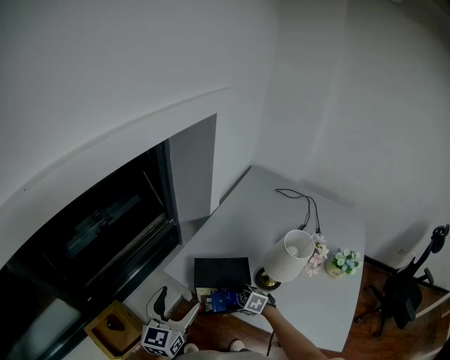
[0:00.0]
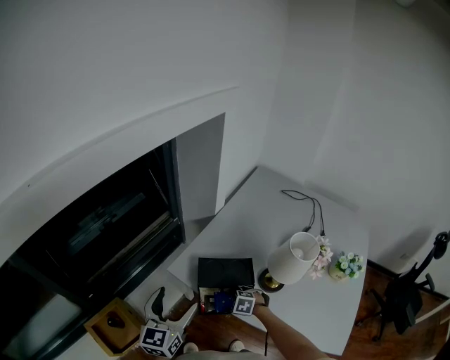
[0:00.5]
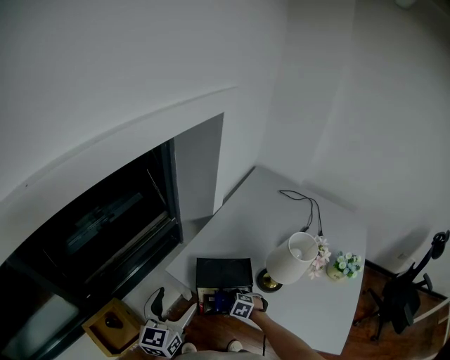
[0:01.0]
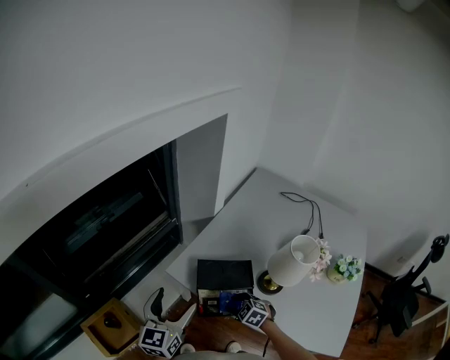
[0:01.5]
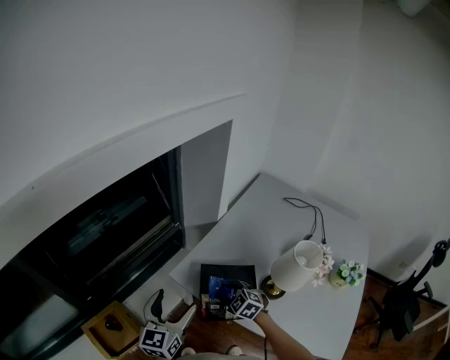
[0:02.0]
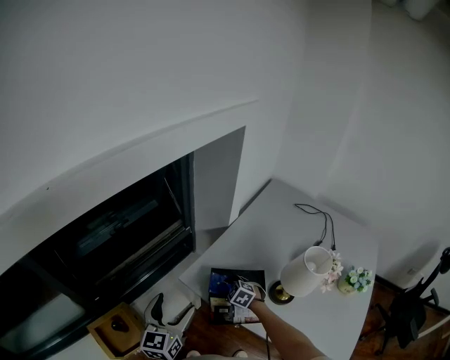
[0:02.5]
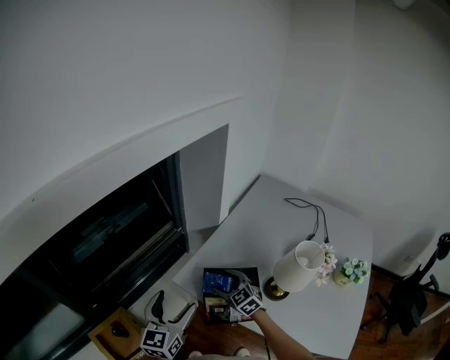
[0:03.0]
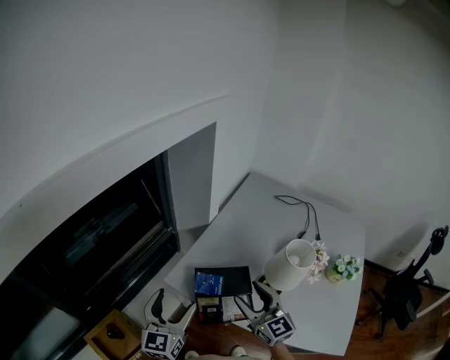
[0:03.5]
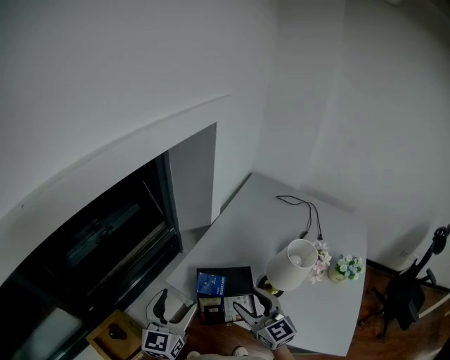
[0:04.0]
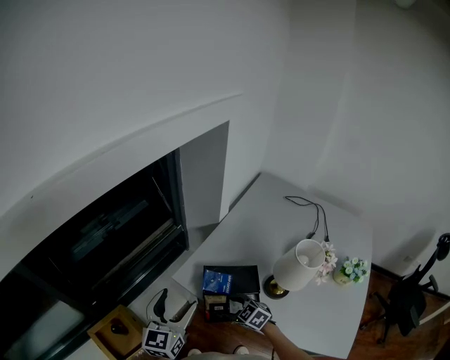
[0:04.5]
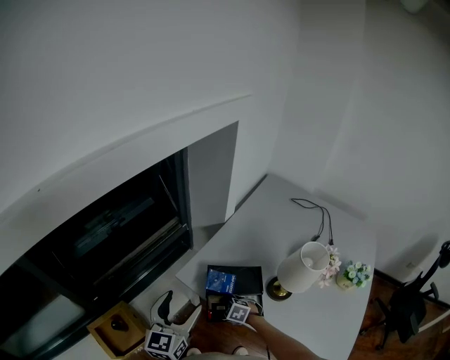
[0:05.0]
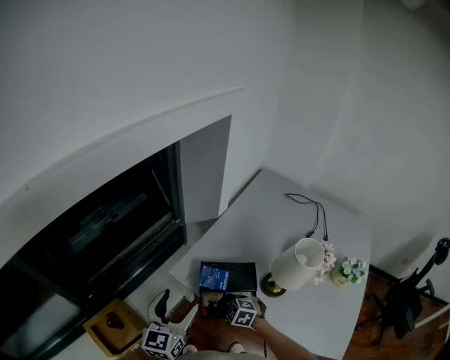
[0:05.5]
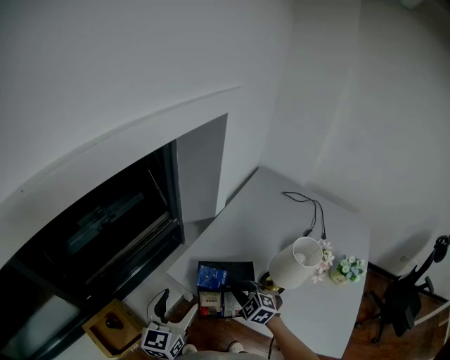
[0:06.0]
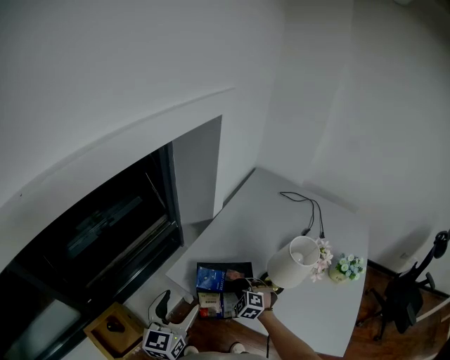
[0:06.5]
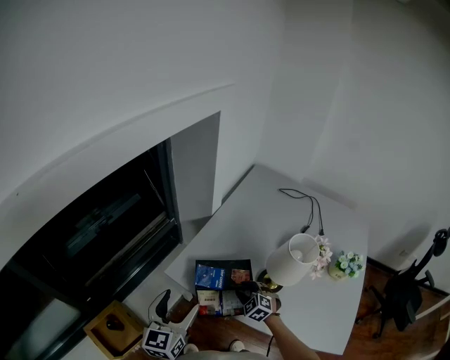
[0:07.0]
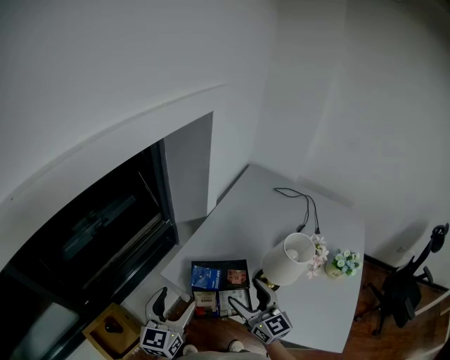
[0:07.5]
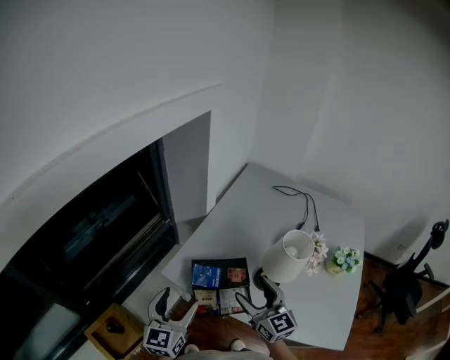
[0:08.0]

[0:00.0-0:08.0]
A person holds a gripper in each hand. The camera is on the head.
0:00.0 to 0:02.0: The right gripper moves upward and forward, about 10 cm.
0:02.0 to 0:04.0: The right gripper moves upward and backward, about 20 cm, and tilts its fingers approximately 40 degrees upward.
0:04.0 to 0:06.0: The right gripper heads downward and forward, covering roughly 15 cm, angles its fingers downward, by roughly 40 degrees, and closes up.
0:06.0 to 0:08.0: The right gripper travels upward and to the right by approximately 15 cm, angles its fingers upward, by roughly 40 degrees, and opens.

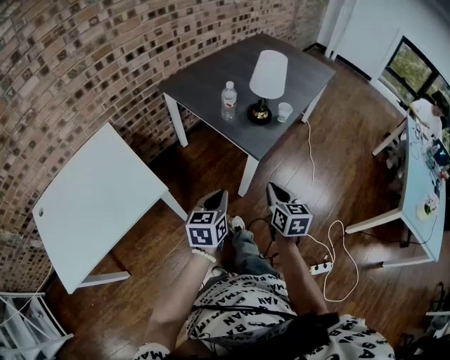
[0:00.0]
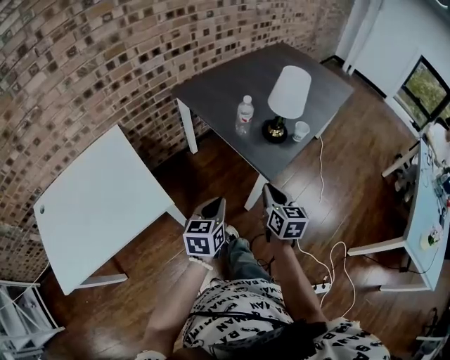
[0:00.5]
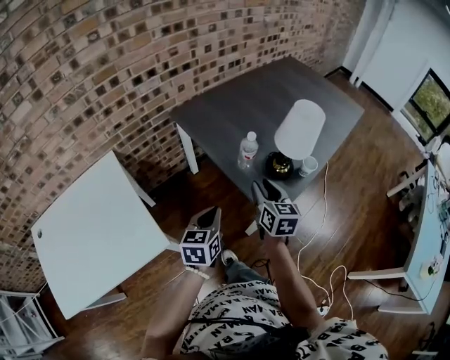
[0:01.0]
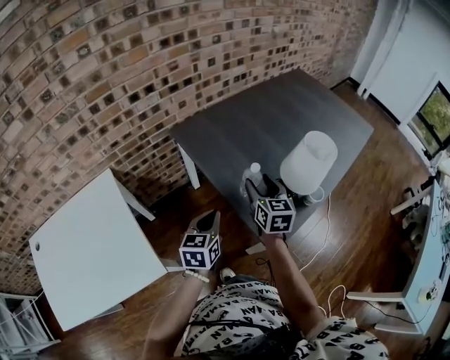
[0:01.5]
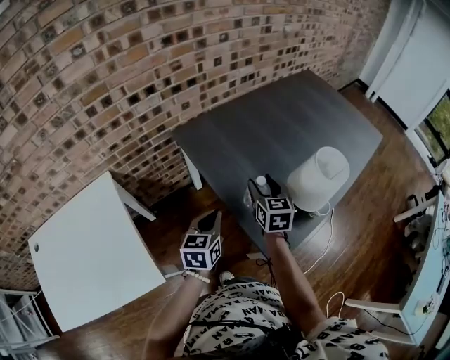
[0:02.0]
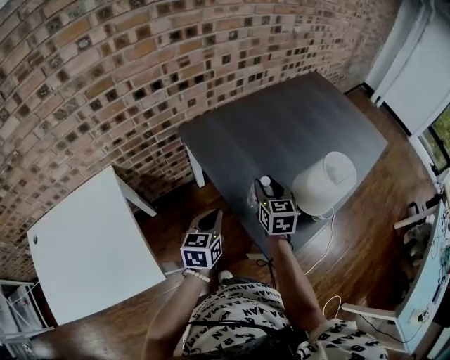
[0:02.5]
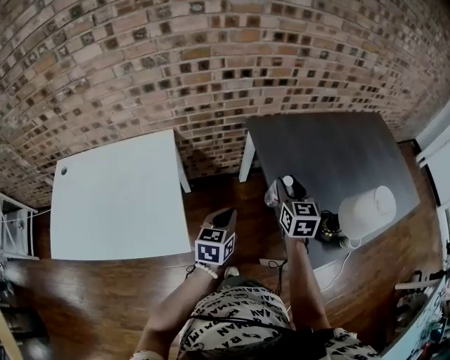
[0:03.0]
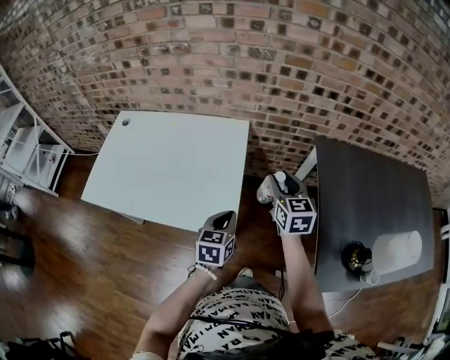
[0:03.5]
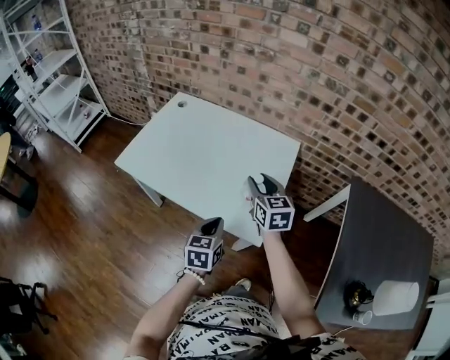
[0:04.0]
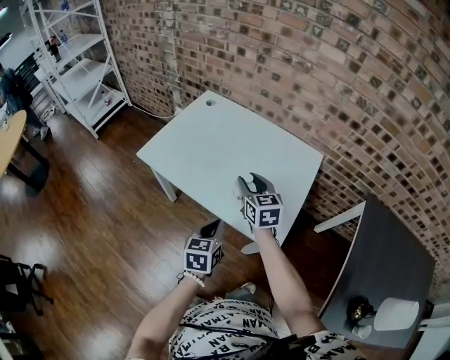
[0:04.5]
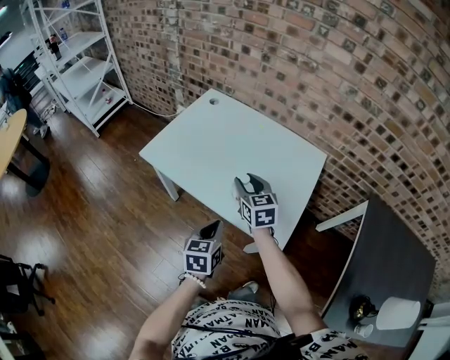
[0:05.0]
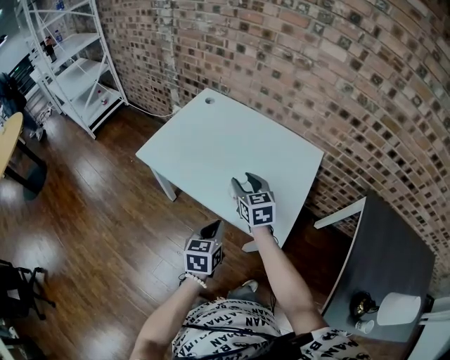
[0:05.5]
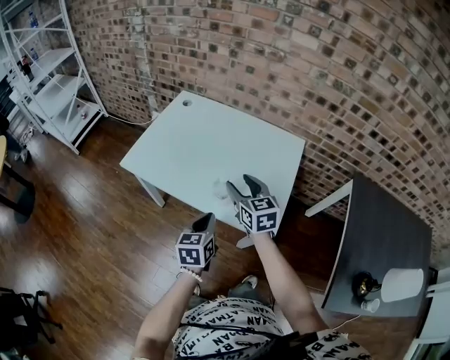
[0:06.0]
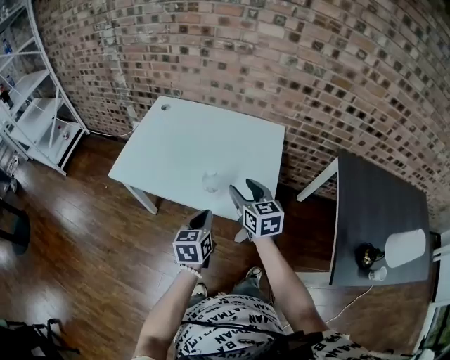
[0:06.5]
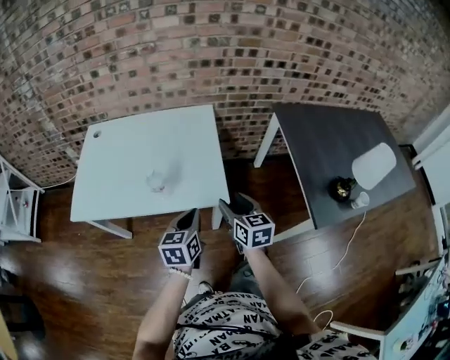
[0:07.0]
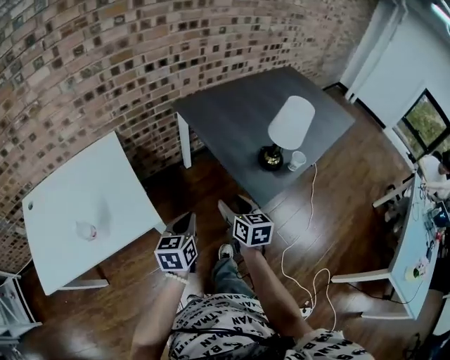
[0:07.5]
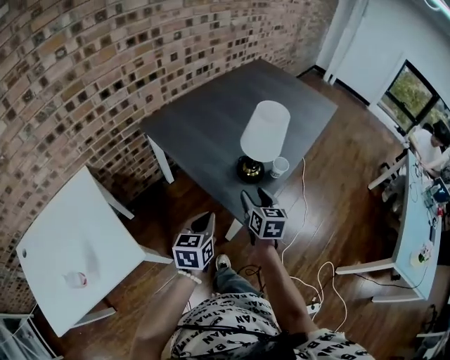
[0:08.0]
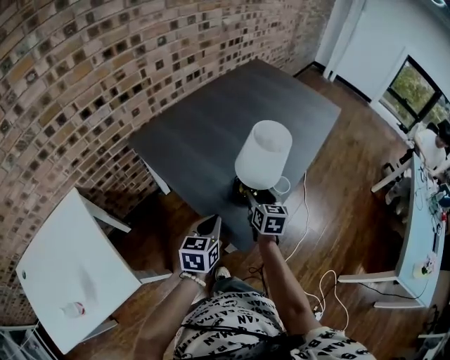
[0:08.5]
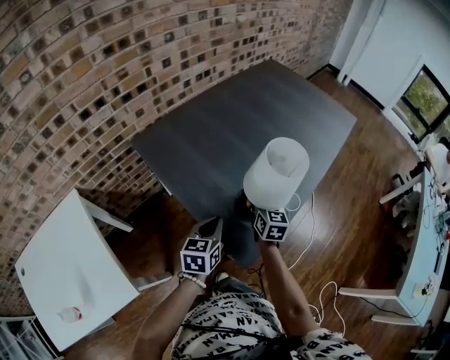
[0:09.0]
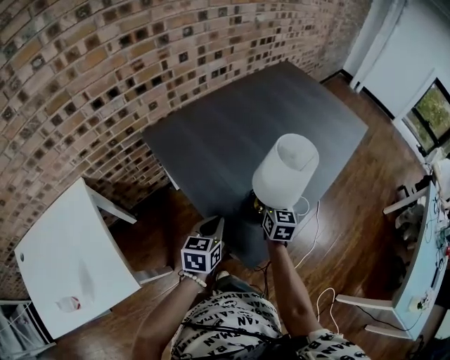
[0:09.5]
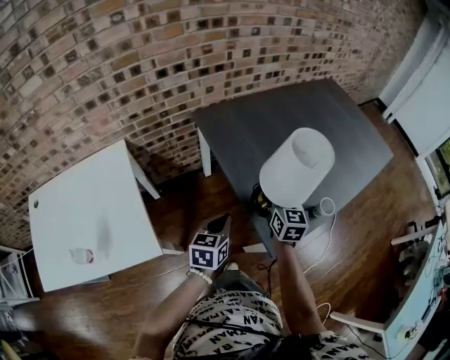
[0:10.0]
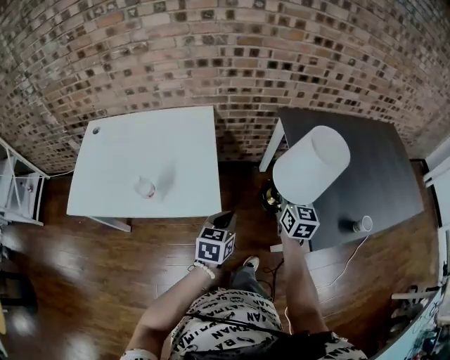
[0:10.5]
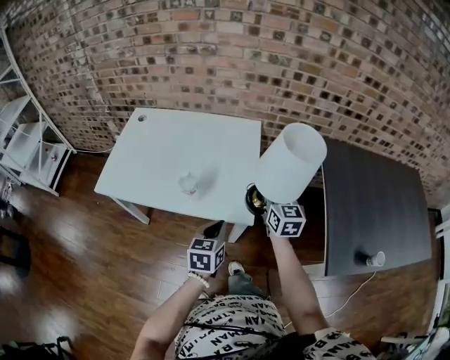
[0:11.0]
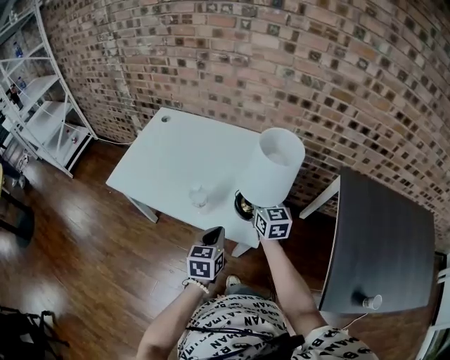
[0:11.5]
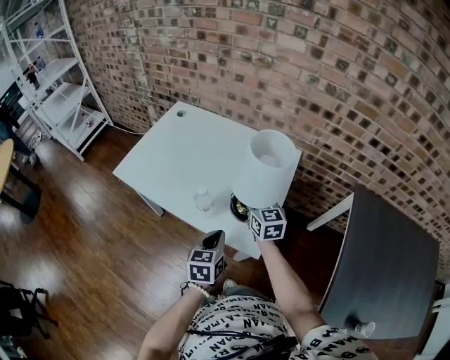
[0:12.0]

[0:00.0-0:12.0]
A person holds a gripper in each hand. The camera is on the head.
0:00.0 to 0:02.0: Both grippers move forward, roughly 40 cm. The right gripper opens.
0:02.0 to 0:04.0: Both grippers are carried approximately 60 cm. The right gripper swivels about 70 degrees, while the left gripper swivels approximately 60 degrees.
0:04.0 to 0:06.0: Both grippers move to the left, roughly 10 cm.
0:06.0 to 0:08.0: Both grippers are carried roughly 60 cm. The left gripper rotates roughly 70 degrees, while the right gripper turns by approximately 90 degrees.
0:08.0 to 0:10.0: The left gripper moves to the left and forward, roughly 10 cm. Meanwhile the right gripper is displaced forward and to the left by some 15 cm, and closes its fingers.
0:10.0 to 0:12.0: Both grippers are carried about 50 cm. The left gripper changes its angle by approximately 60 degrees. The right gripper swivels some 70 degrees.

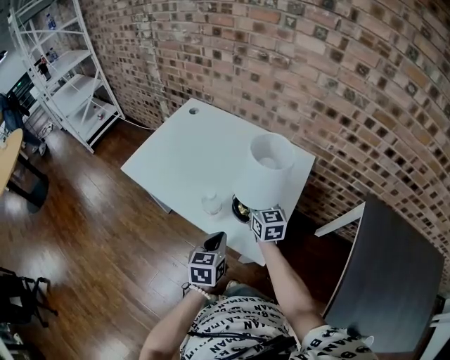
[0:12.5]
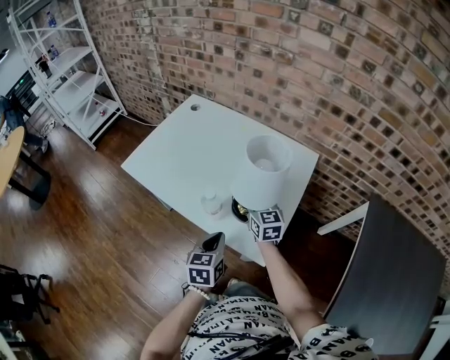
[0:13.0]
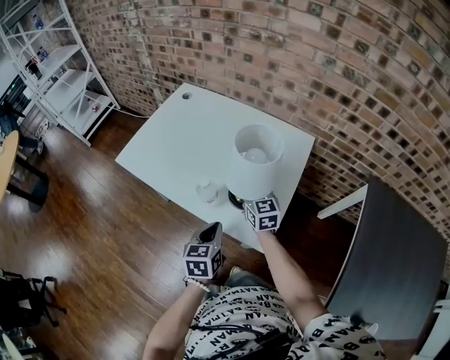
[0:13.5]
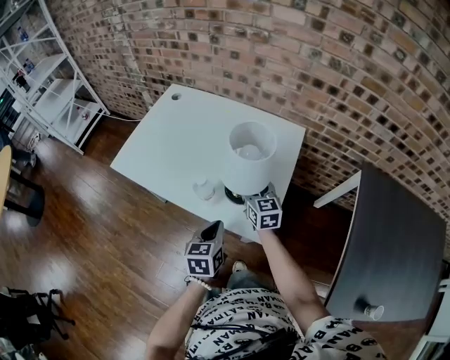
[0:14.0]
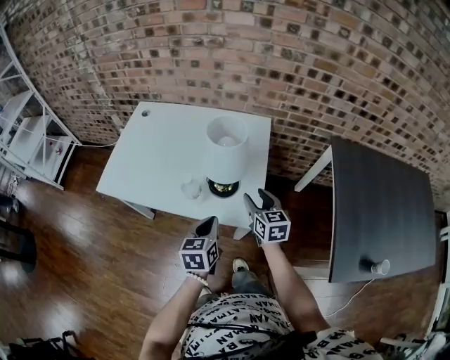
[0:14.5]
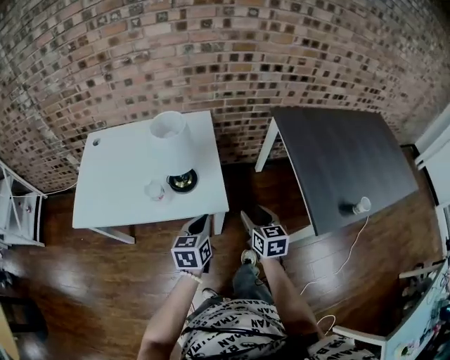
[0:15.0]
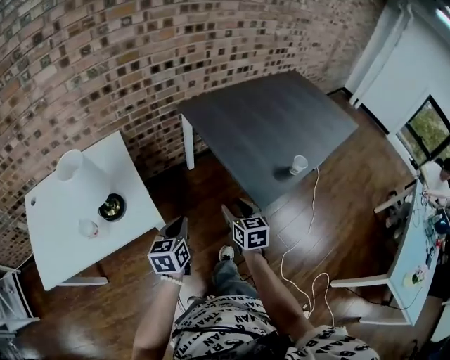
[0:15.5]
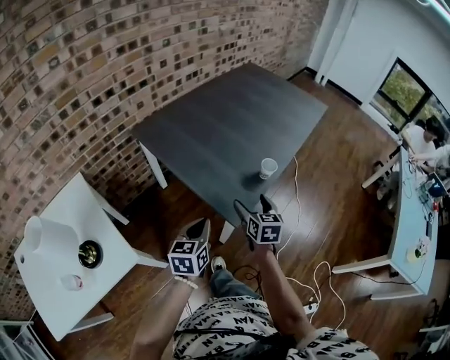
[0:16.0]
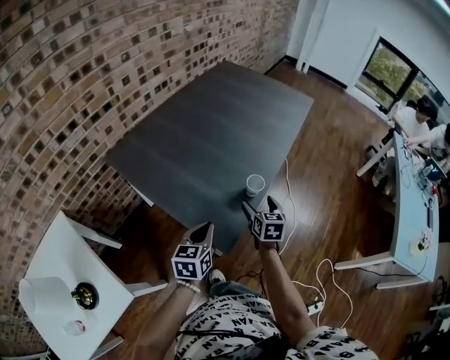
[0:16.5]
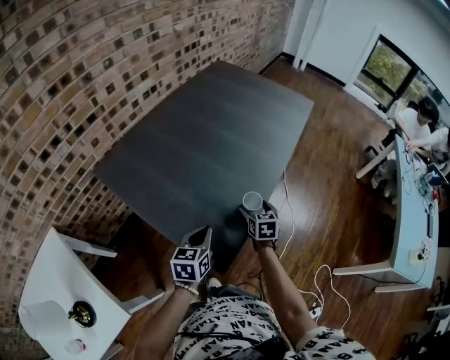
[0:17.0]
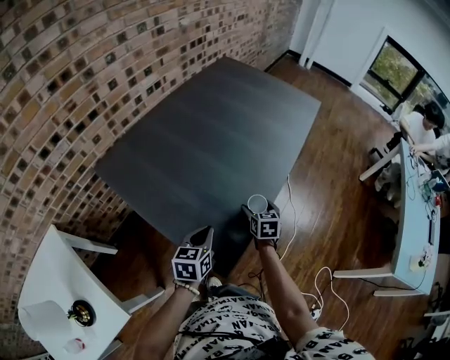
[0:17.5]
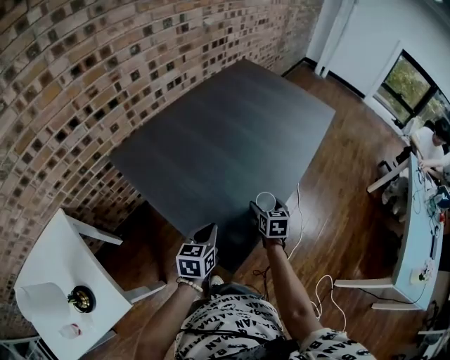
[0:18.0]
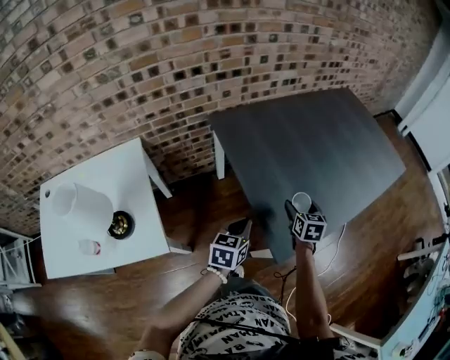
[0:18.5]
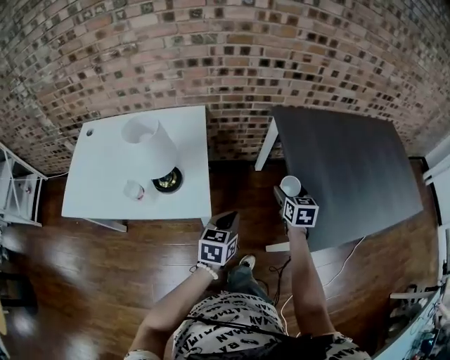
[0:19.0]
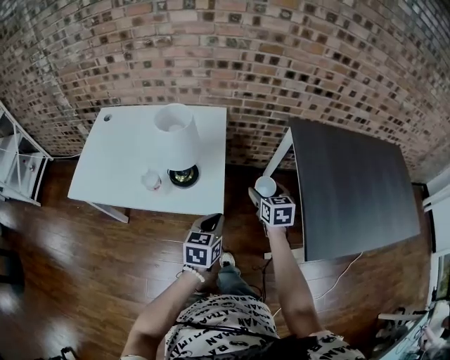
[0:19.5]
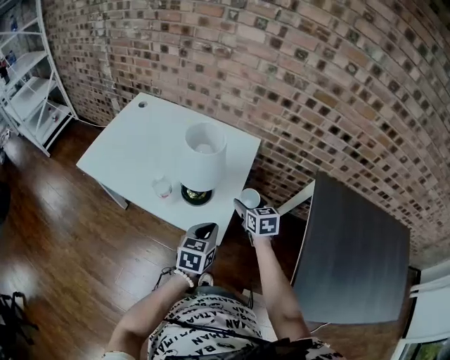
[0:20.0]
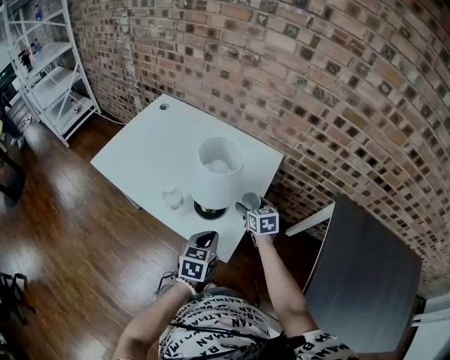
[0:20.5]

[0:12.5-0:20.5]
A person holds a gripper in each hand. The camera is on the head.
0:12.5 to 0:14.5: The right gripper is displaced backward and to the right by approximately 15 cm, and swivels about 20 degrees.
0:14.5 to 0:16.5: The pair of grippers is taken some 70 cm. The left gripper changes its angle by some 70 degrees, while the right gripper turns by about 80 degrees, and opens its fingers.
0:16.5 to 0:18.5: Both grippers travel together to the left, roughly 15 cm. The left gripper changes its angle by some 20 degrees; the right gripper swivels about 30 degrees.
0:18.5 to 0:20.5: The pair of grippers is taken approximately 50 cm. The left gripper swivels about 60 degrees; the right gripper swivels some 70 degrees.
